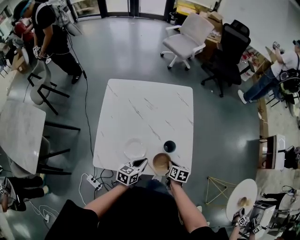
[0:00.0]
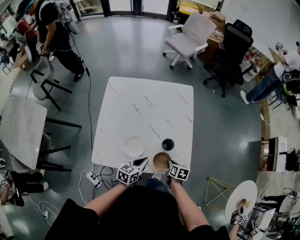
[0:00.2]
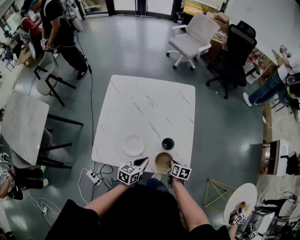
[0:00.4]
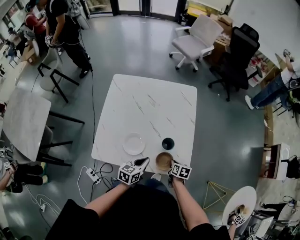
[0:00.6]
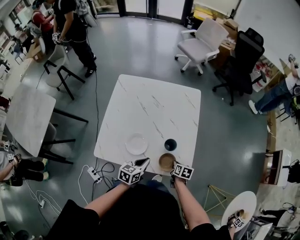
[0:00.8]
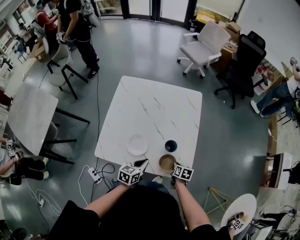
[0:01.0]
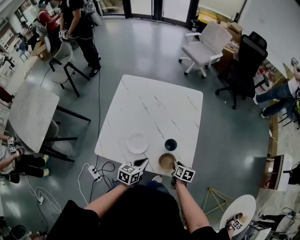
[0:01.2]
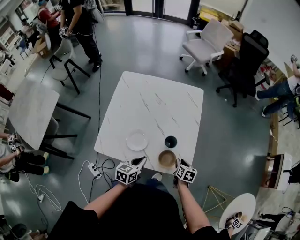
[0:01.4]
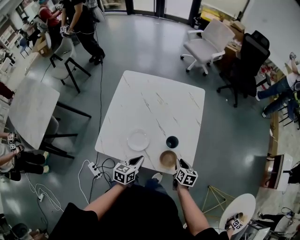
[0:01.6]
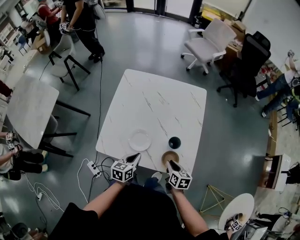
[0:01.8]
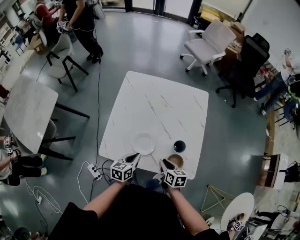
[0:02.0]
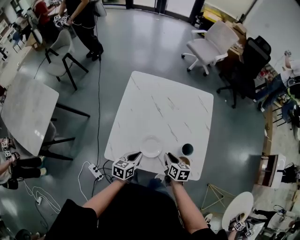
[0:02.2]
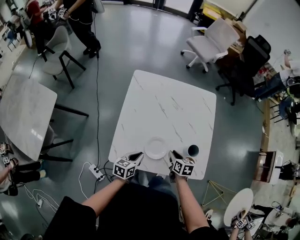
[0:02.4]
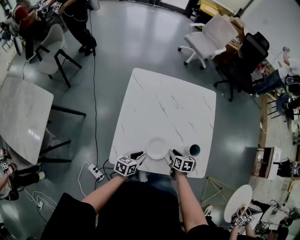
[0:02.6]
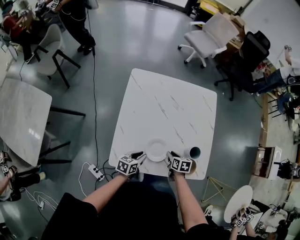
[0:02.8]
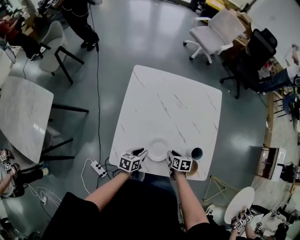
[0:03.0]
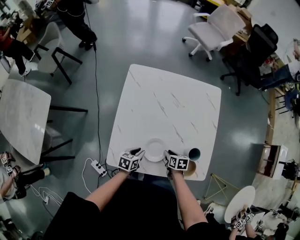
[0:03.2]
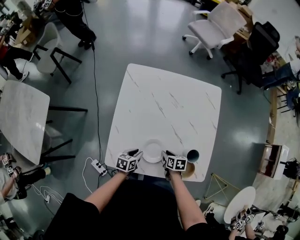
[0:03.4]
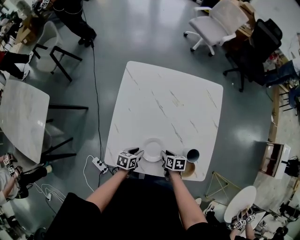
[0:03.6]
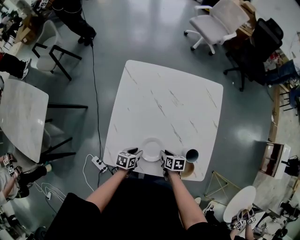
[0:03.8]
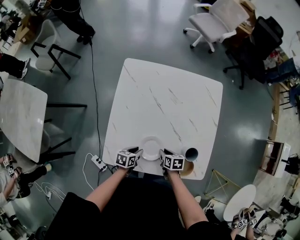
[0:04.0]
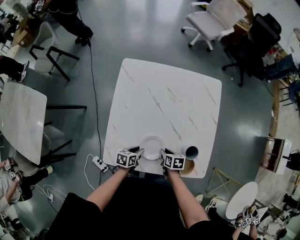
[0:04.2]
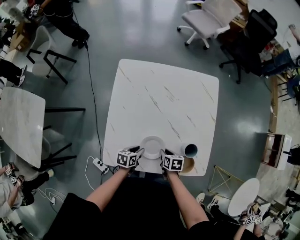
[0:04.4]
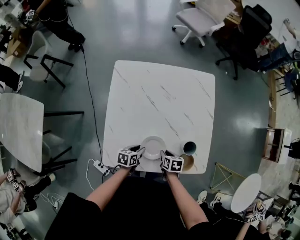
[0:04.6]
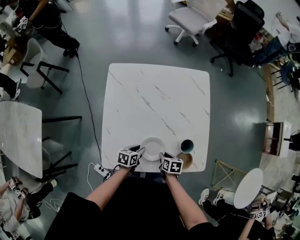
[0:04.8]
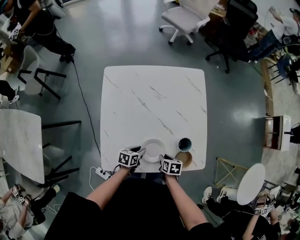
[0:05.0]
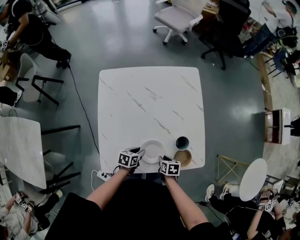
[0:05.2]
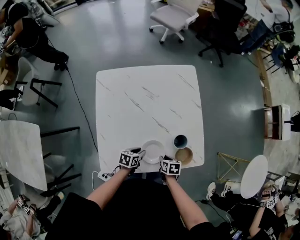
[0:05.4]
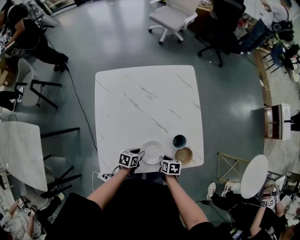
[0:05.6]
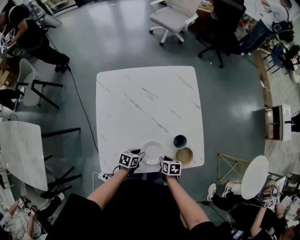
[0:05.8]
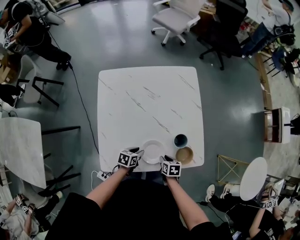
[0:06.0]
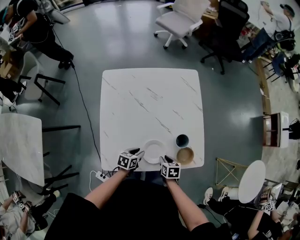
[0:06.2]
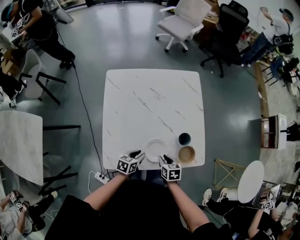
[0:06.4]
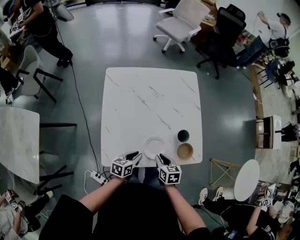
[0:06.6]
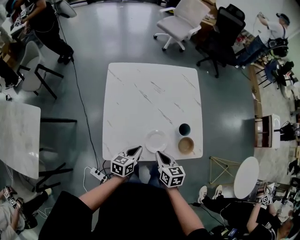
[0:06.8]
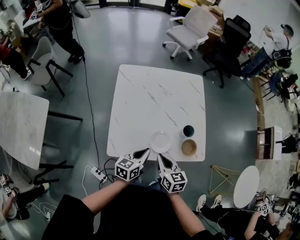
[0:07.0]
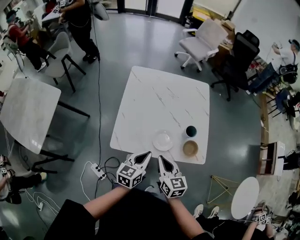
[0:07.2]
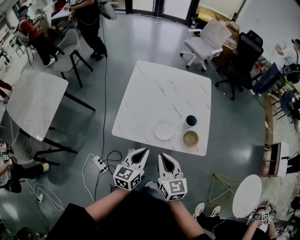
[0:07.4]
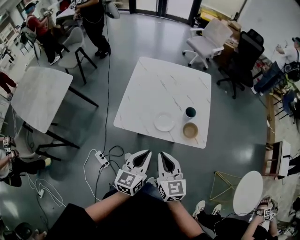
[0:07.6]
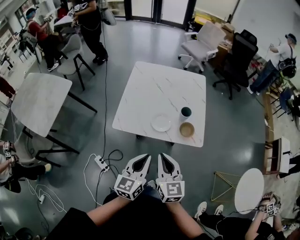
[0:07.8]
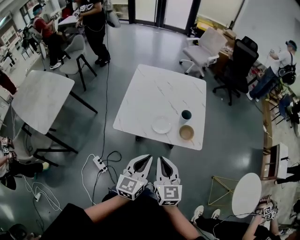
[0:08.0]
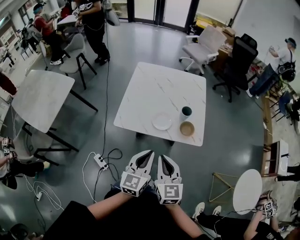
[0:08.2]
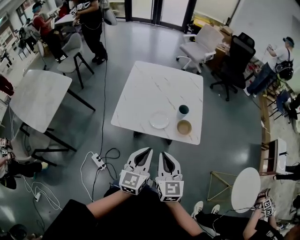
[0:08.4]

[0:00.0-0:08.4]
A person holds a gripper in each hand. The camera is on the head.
0:00.0 to 0:01.4: The right gripper is displaced to the right by some 5 cm.
0:01.4 to 0:02.8: The right gripper moves to the left, roughly 25 cm, while the left gripper goes approximately 20 cm to the left and downward.
0:02.8 to 0:04.2: The left gripper travels downward by some 5 cm.
0:04.2 to 0:05.6: The left gripper goes some 5 cm to the right. Meanwhile the right gripper is displaced to the right and backward by approximately 10 cm.
0:05.6 to 0:07.0: Both grippers move upward, approximately 20 cm. The left gripper changes its angle by some 30 degrees, and closes. Meanwhile the right gripper tilts its fingers approximately 30 degrees upward.
0:07.0 to 0:08.4: Both grippers move backward and upward, approximately 30 cm. The right gripper swivels approximately 30 degrees. Meanwhile the left gripper changes its angle by some 40 degrees.

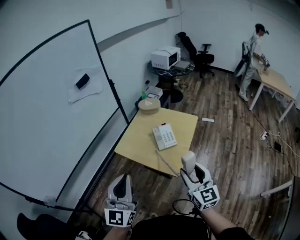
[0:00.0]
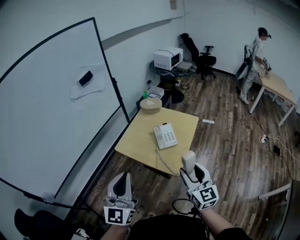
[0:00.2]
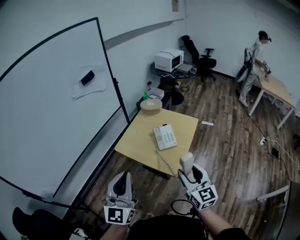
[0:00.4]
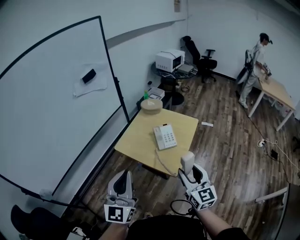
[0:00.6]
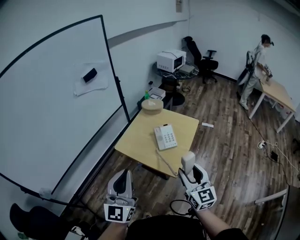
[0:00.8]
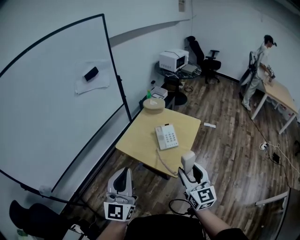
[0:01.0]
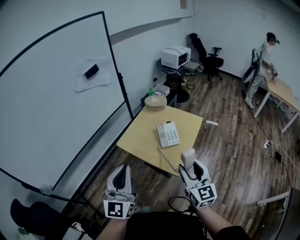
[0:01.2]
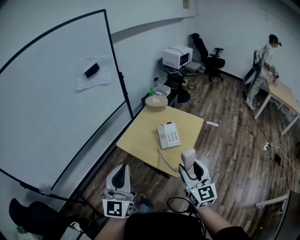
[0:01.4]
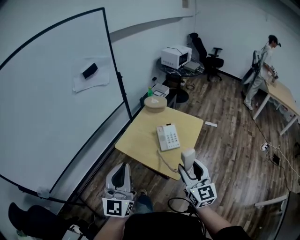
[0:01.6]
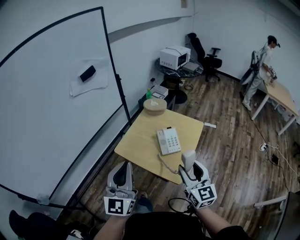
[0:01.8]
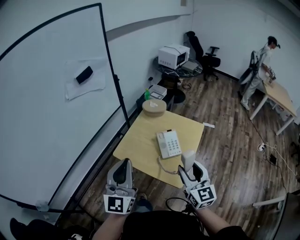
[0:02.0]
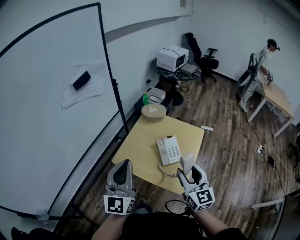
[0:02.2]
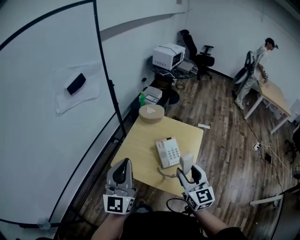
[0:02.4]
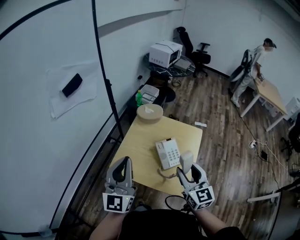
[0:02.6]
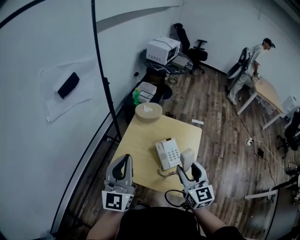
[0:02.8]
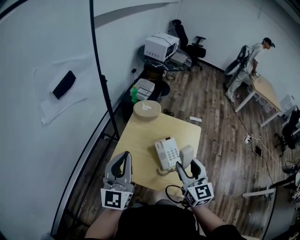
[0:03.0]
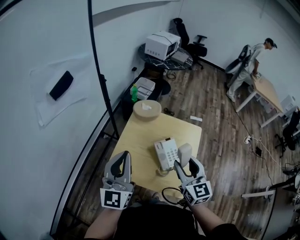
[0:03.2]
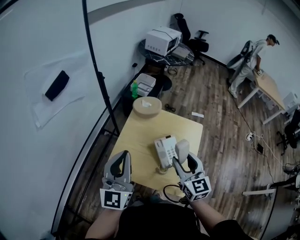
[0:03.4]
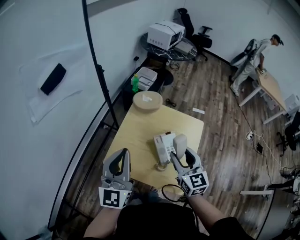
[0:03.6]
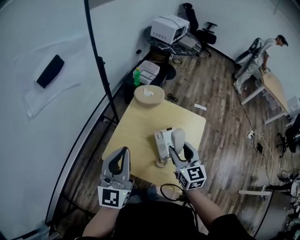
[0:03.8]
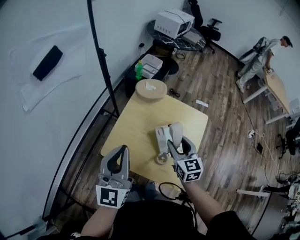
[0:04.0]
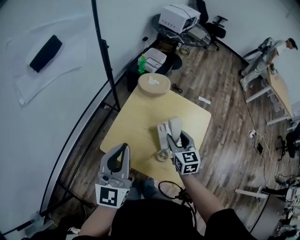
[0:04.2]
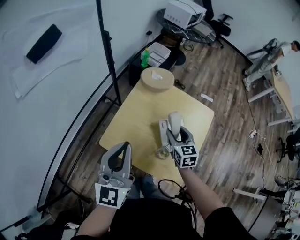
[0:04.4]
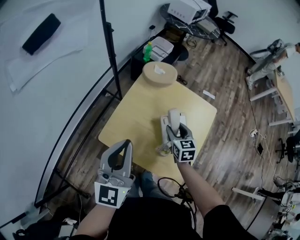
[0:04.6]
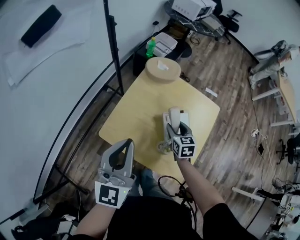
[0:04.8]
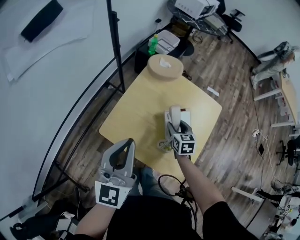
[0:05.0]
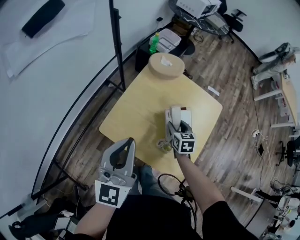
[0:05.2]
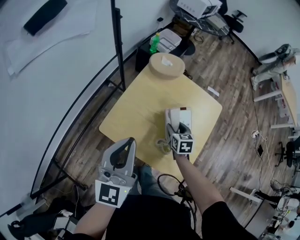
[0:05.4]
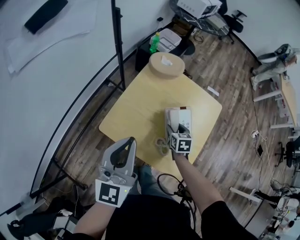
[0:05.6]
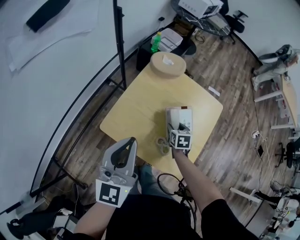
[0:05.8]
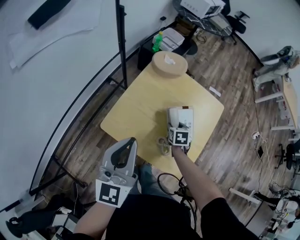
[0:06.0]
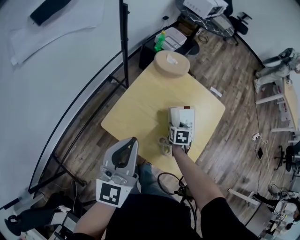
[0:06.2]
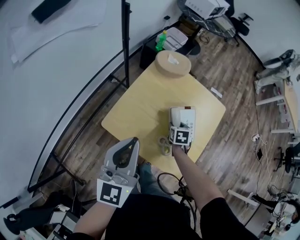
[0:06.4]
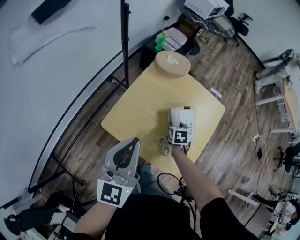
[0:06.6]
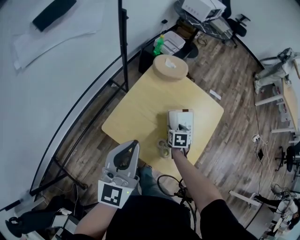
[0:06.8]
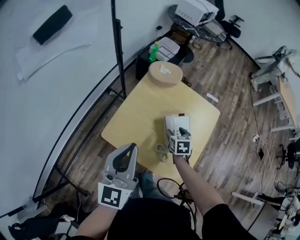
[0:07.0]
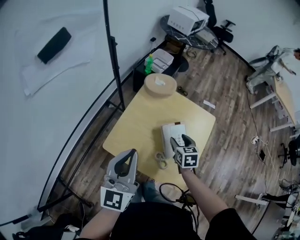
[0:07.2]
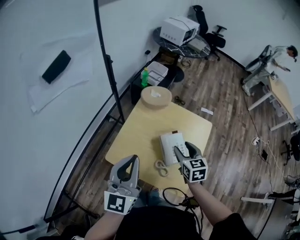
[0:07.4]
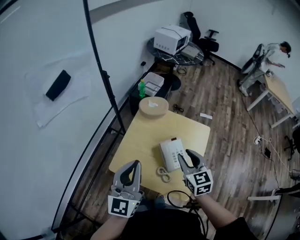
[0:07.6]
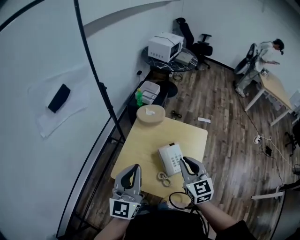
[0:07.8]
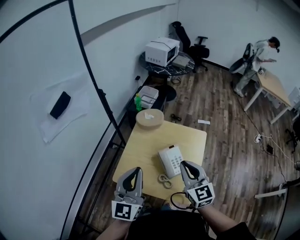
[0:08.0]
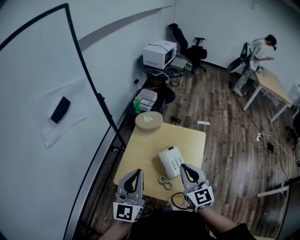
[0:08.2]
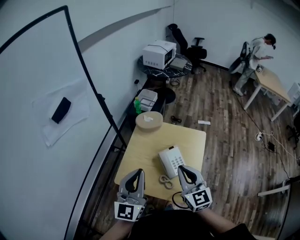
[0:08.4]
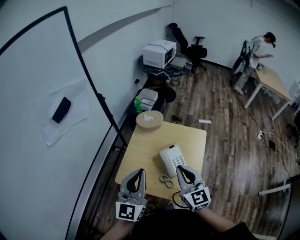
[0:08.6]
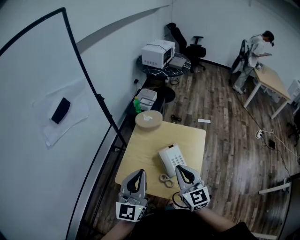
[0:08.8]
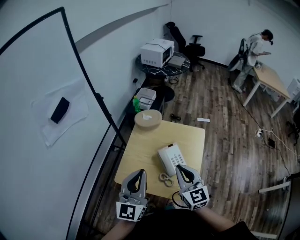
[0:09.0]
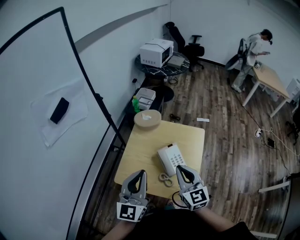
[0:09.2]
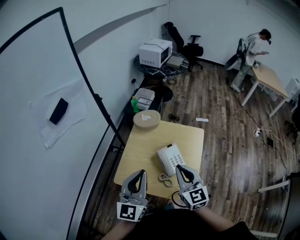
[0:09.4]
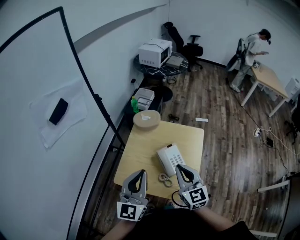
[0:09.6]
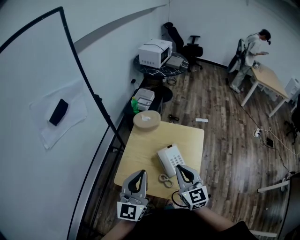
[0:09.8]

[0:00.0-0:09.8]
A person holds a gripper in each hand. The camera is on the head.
0:00.0 to 0:01.4: The grippers stay close to where they were, moving slightly.
0:01.4 to 0:02.8: Both grippers travel together forward, some 30 cm.
0:02.8 to 0:04.2: The left gripper travels downward and forward by about 10 cm, while the right gripper goes some 20 cm downward and forward.
0:04.2 to 0:05.6: The left gripper travels downward by roughly 5 cm. The right gripper shifts about 20 cm downward, and swivels some 20 degrees.
0:05.6 to 0:07.0: The grippers make only small movements.
0:07.0 to 0:08.4: The right gripper travels upward and backward by some 35 cm, points its fingers roughly 40 degrees further upward, and closes its fingers. The left gripper heads upward, covering some 10 cm.
0:08.4 to 0:09.8: The grippers make only small movements.

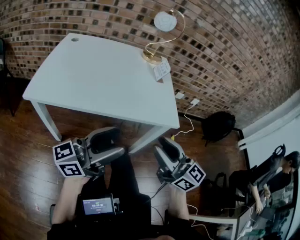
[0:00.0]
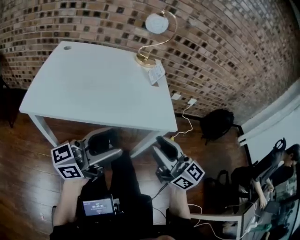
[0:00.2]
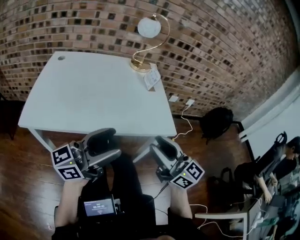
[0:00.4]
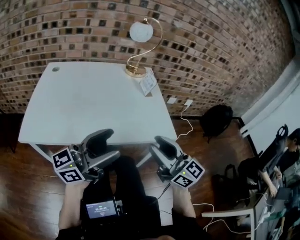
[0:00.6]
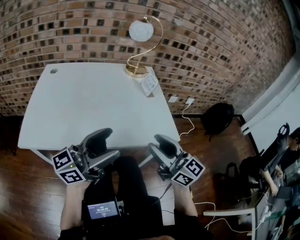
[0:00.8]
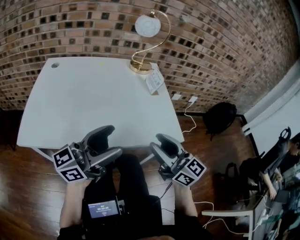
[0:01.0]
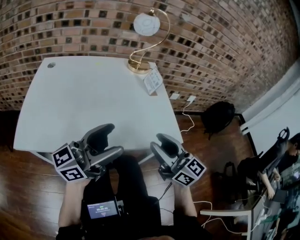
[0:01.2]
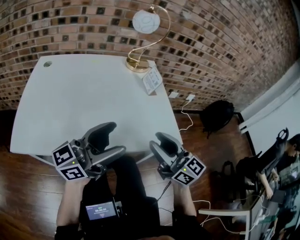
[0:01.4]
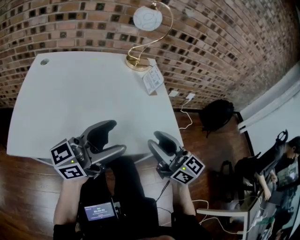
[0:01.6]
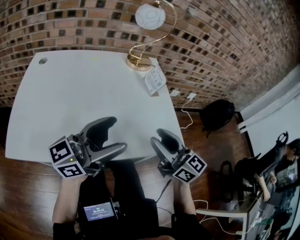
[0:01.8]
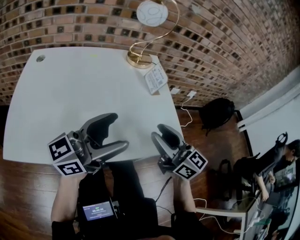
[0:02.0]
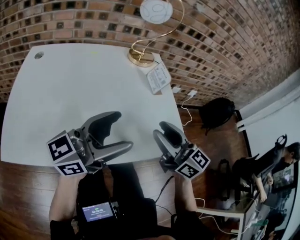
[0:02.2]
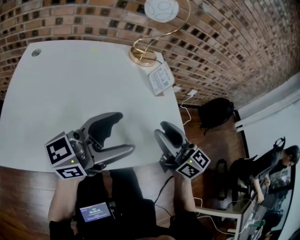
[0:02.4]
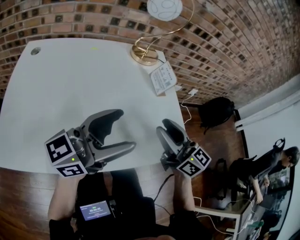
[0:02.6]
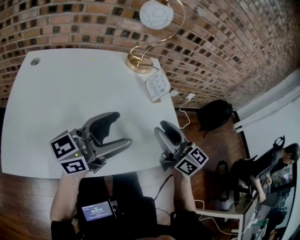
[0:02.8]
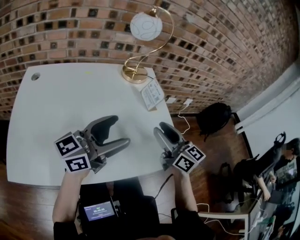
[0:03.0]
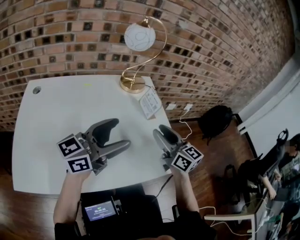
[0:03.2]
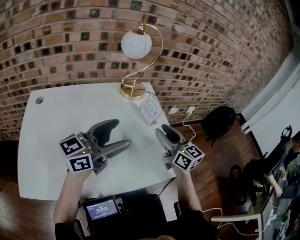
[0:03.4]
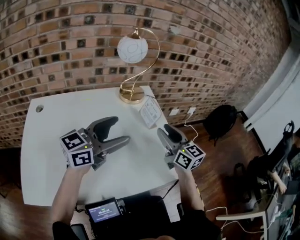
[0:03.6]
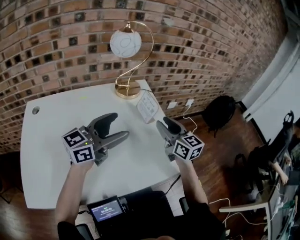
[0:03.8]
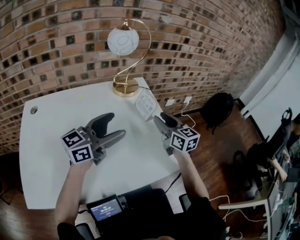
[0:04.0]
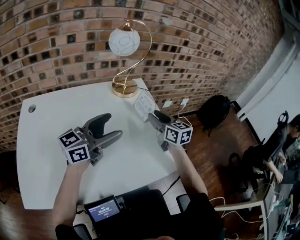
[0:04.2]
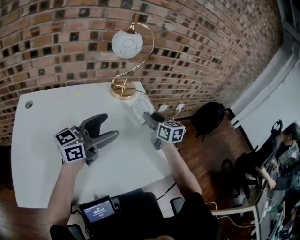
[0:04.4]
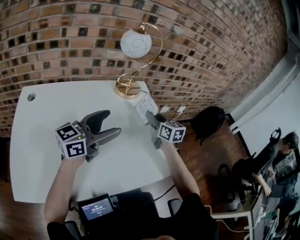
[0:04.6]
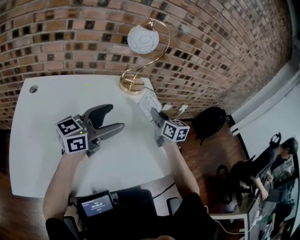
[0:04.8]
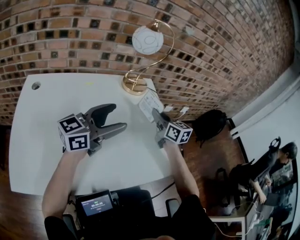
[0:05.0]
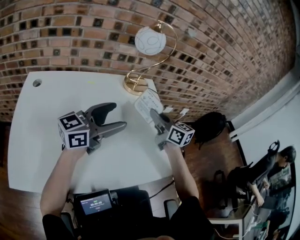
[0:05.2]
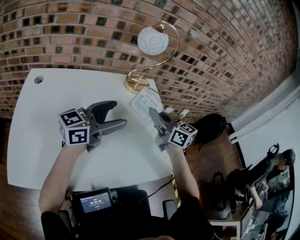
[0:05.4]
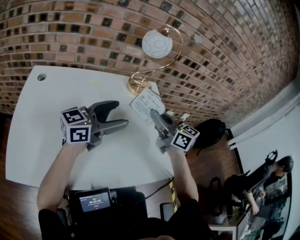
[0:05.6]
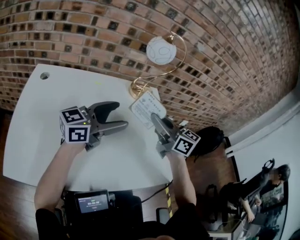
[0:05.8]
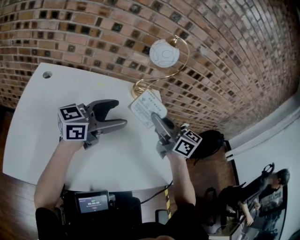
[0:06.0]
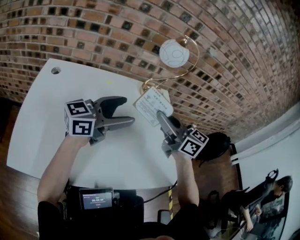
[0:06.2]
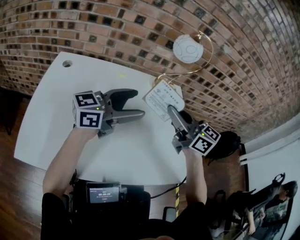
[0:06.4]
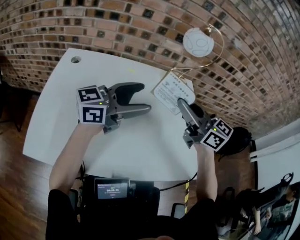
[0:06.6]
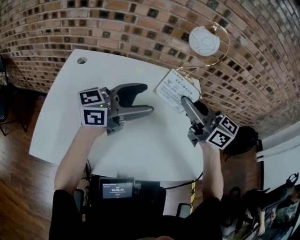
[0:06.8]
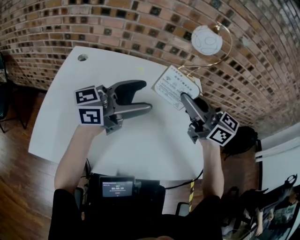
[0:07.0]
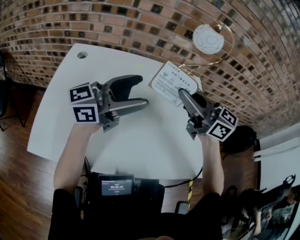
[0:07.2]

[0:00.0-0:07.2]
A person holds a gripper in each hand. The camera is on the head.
0:00.0 to 0:01.4: The grippers both shift forward by approximately 15 cm.
0:01.4 to 0:02.8: Both grippers travel together forward, approximately 10 cm.
0:02.8 to 0:04.4: The right gripper goes some 20 cm forward, and turns by roughly 20 degrees. The left gripper travels forward by roughly 10 cm.
0:04.4 to 0:05.8: The right gripper goes some 15 cm upward, backward and to the left, turns by approximately 30 degrees, and closes up.
0:05.8 to 0:07.2: The left gripper moves approximately 10 cm; the right gripper ends up roughly 10 cm from where it was, and rotates some 20 degrees.
